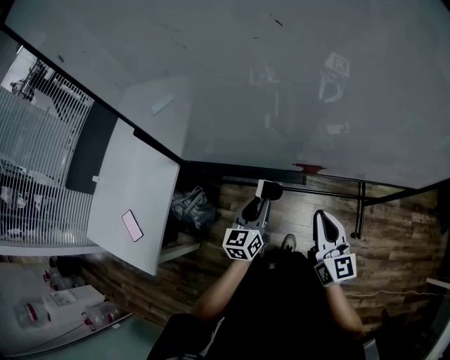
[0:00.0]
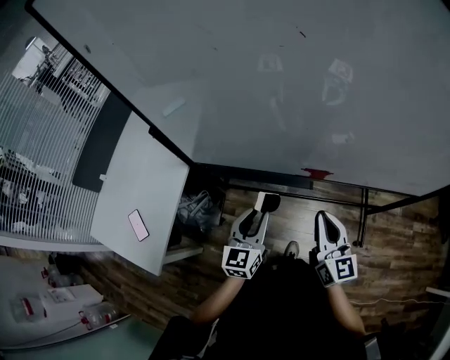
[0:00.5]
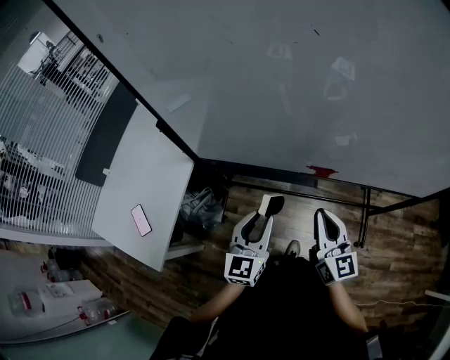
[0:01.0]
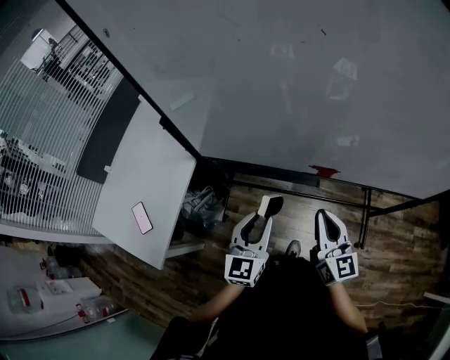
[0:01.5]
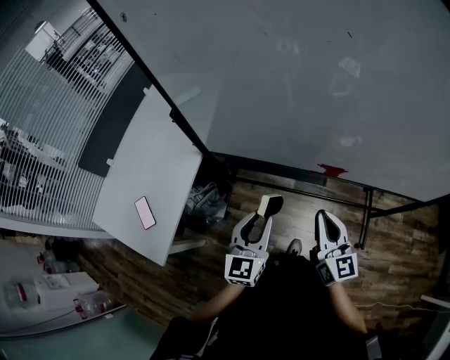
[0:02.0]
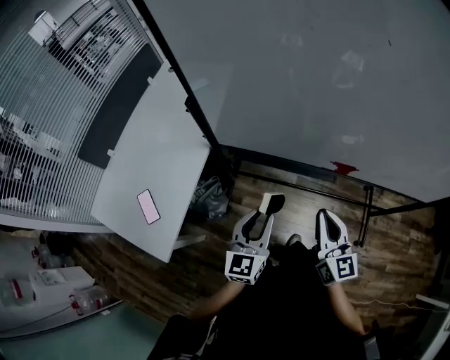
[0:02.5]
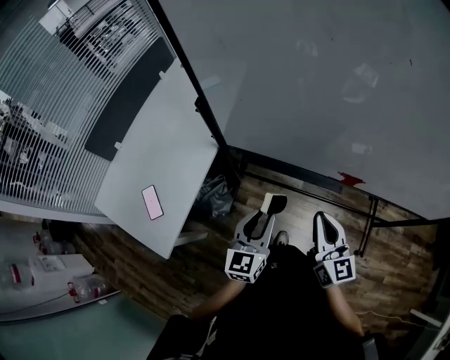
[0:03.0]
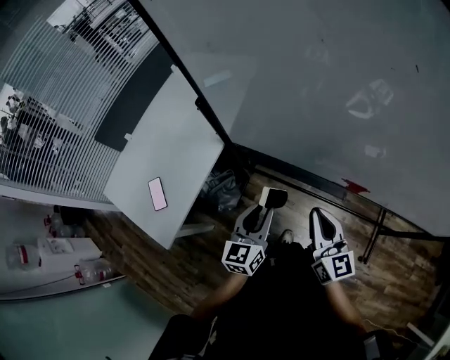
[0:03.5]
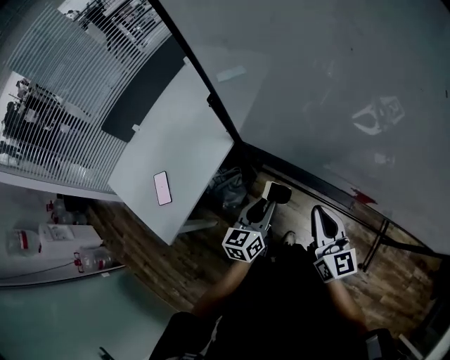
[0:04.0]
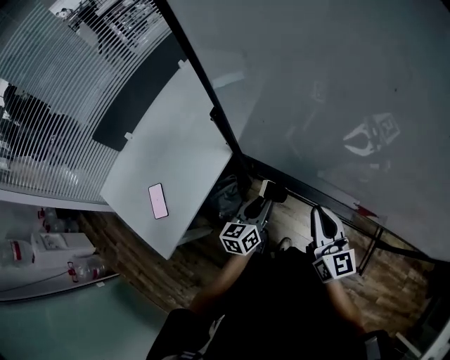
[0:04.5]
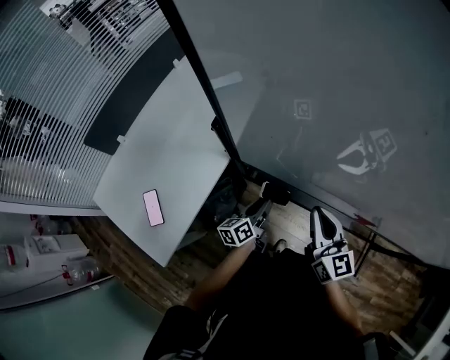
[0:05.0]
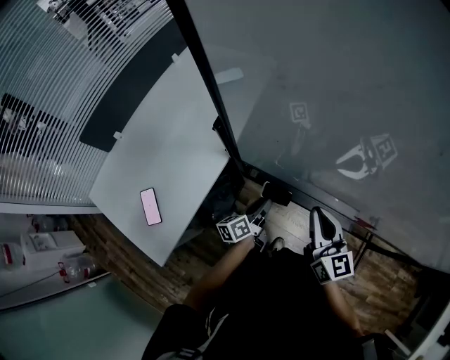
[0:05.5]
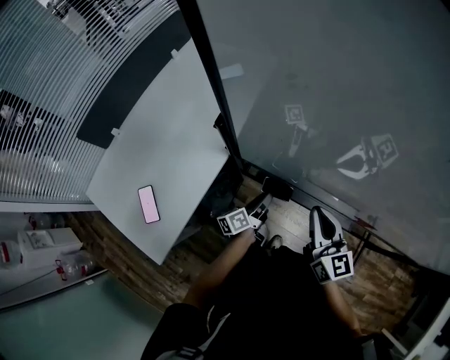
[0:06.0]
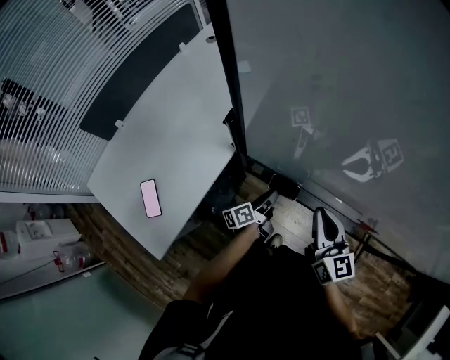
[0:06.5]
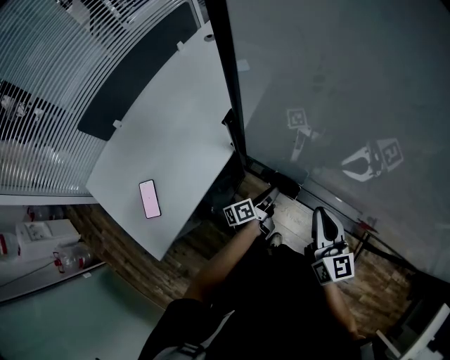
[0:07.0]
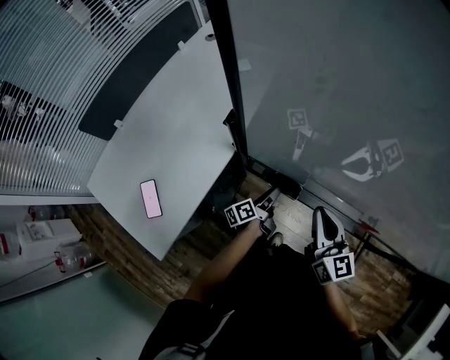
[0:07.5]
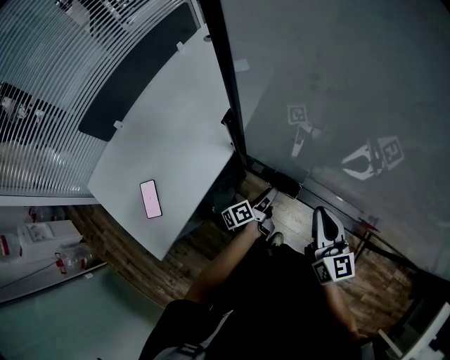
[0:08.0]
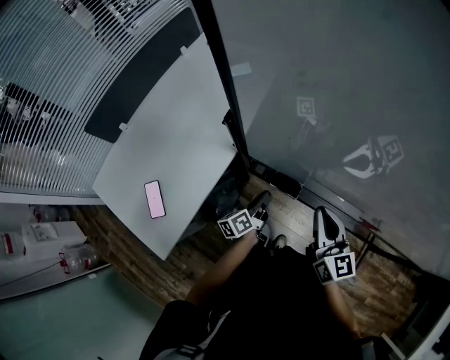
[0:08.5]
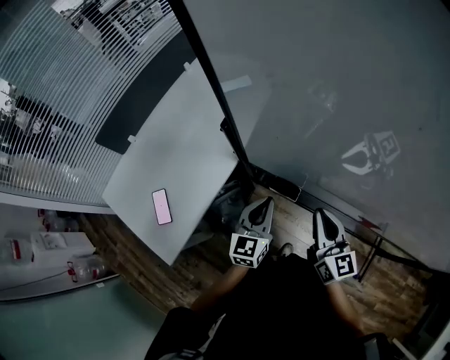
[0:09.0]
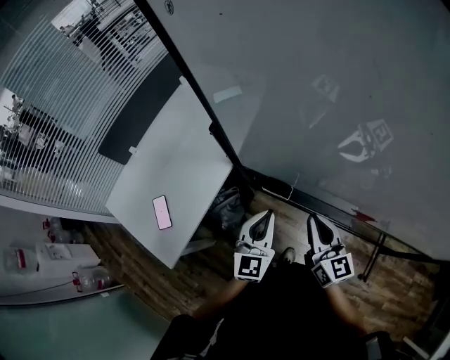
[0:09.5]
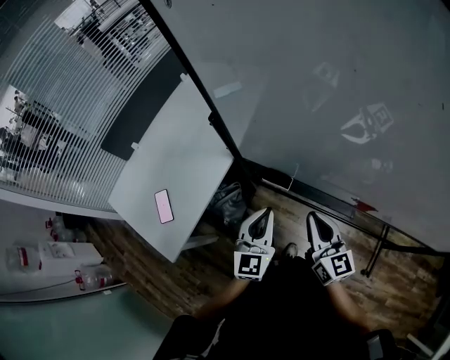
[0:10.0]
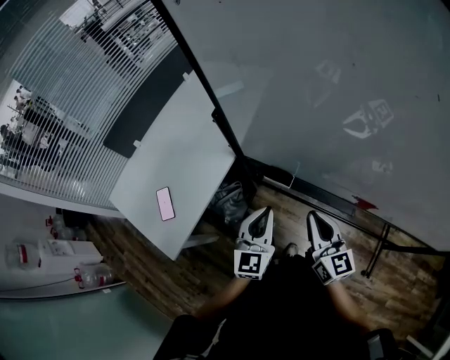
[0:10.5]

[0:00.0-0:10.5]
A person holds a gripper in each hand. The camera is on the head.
0:00.0 to 0:02.0: The right gripper travels to the left by approximately 10 cm, while the left gripper shifts some 15 cm upward, backward and to the left.
0:02.0 to 0:04.0: The left gripper is displaced downward, forward and to the left by some 15 cm, and rotates about 20 degrees. Meanwhile the right gripper shifts about 10 cm forward and to the left.
0:04.0 to 0:06.5: The left gripper is displaced downward and forward by approximately 20 cm, and twists approximately 50 degrees counterclockwise, seen from behind. The right gripper travels forward by some 10 cm.
0:06.5 to 0:08.5: The left gripper closes up.
0:08.5 to 0:10.5: The left gripper heads upward and backward, covering roughly 20 cm, and rotates around the line of its fingers by about 70 degrees, clockwise from behind, while the right gripper moves backward, about 10 cm.

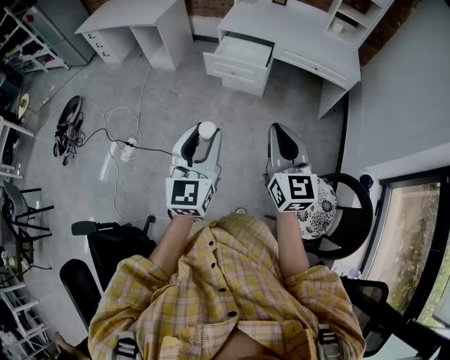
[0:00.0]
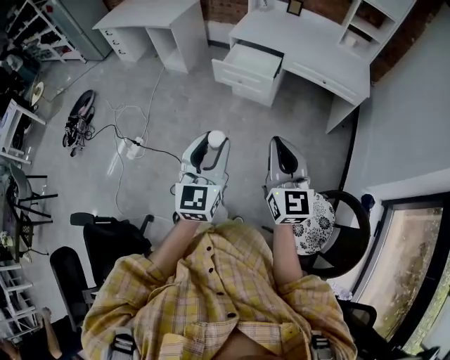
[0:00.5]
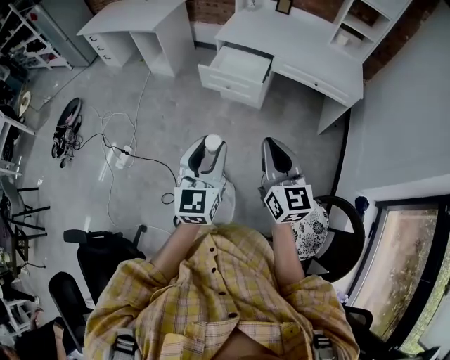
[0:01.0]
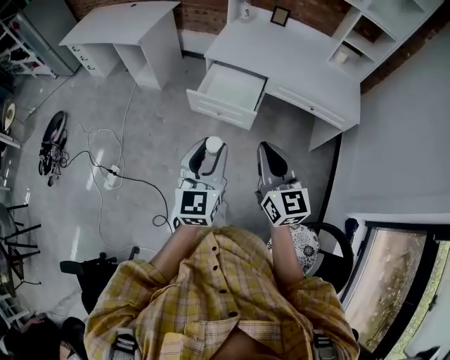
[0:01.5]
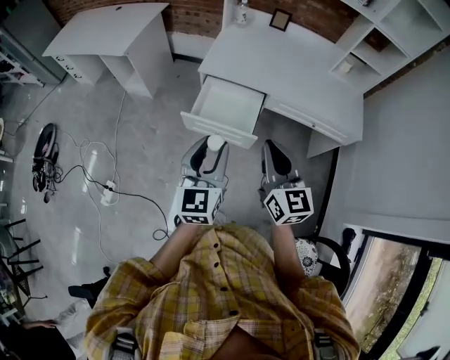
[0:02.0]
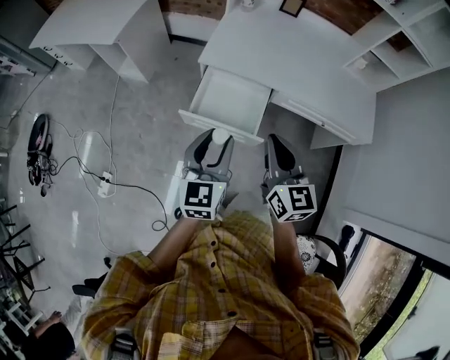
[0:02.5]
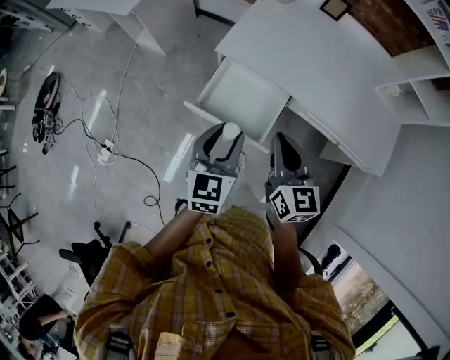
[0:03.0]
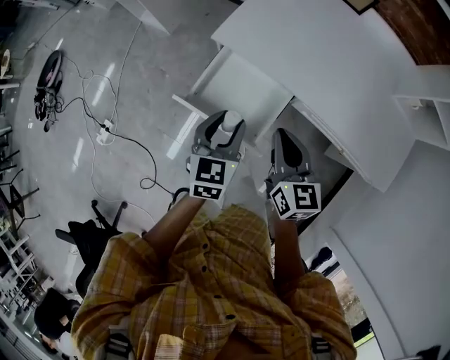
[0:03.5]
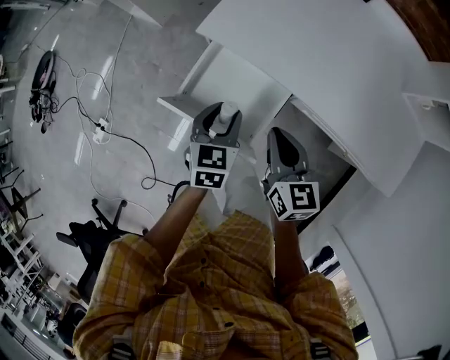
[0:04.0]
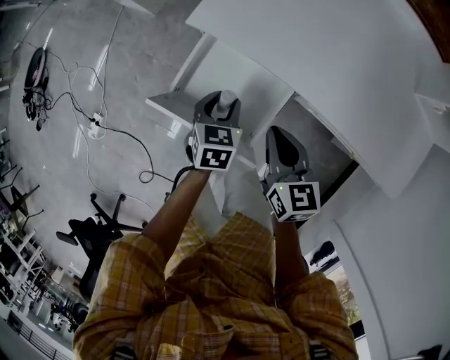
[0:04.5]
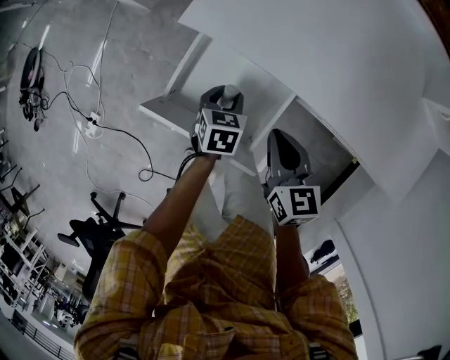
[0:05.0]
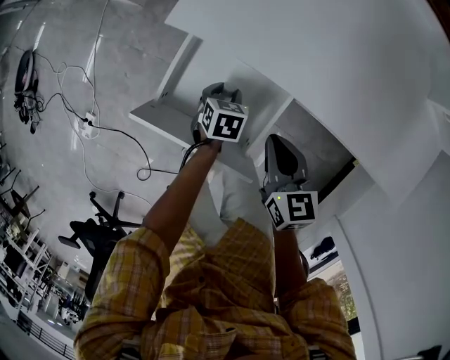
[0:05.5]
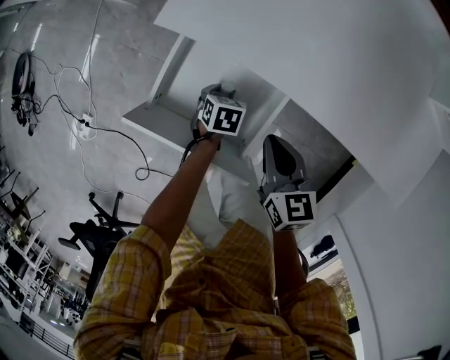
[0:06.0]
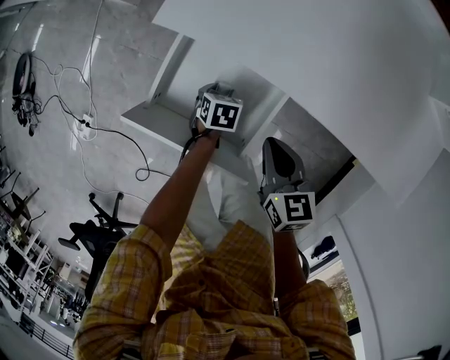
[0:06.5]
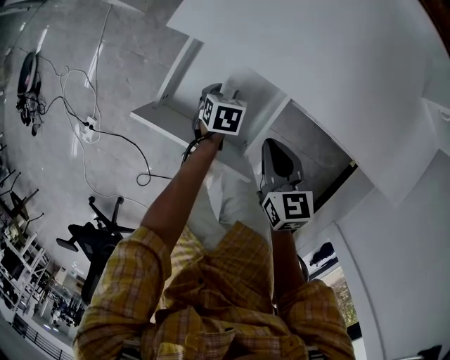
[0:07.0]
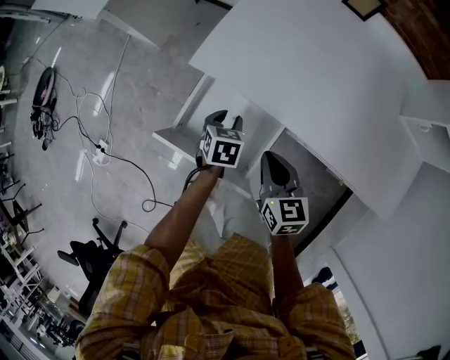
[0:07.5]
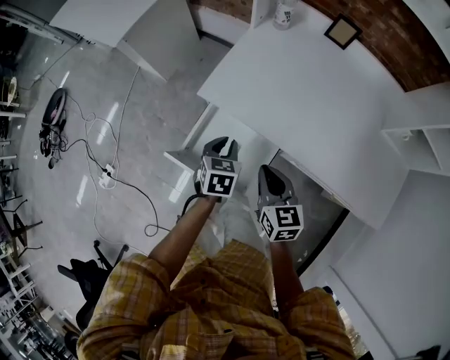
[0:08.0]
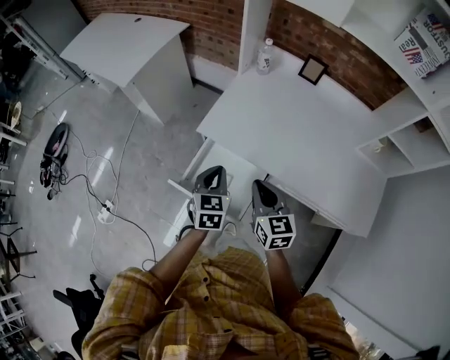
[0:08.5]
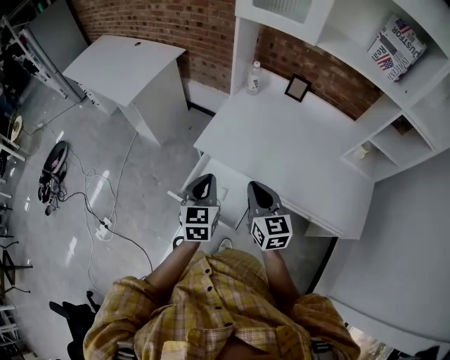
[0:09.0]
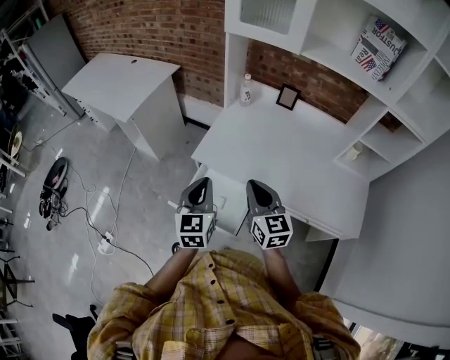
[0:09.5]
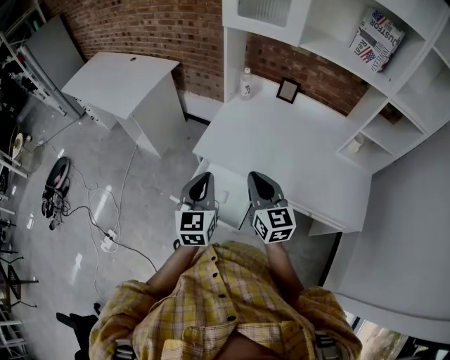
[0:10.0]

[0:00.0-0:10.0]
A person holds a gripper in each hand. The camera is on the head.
0:00.0 to 0:02.0: The pair of grippers is taken forward, some 40 cm.
0:02.0 to 0:04.0: The two grippers go approximately 35 cm forward and downward. The right gripper changes its angle by about 30 degrees; the left gripper tilts its fingers approximately 30 degrees downward.
0:04.0 to 0:06.0: The right gripper travels downward by approximately 15 cm. The left gripper travels downward by some 30 cm, and points its fingers about 30 degrees further downward.
0:06.0 to 0:08.0: The right gripper is displaced upward by roughly 10 cm, while the left gripper moves upward, about 25 cm, swivels some 30 degrees, and closes.
0:08.0 to 0:10.0: Both grippers move upward, roughly 25 cm. The left gripper tips its fingers upward by some 40 degrees; the right gripper turns by roughly 20 degrees.

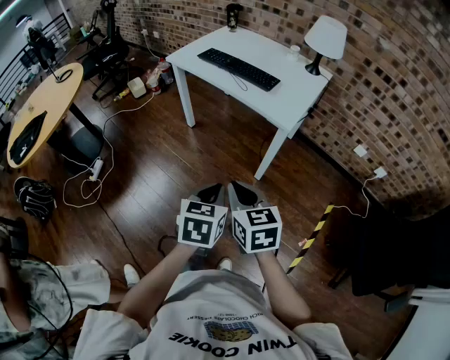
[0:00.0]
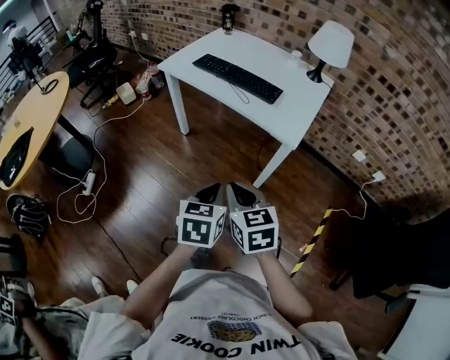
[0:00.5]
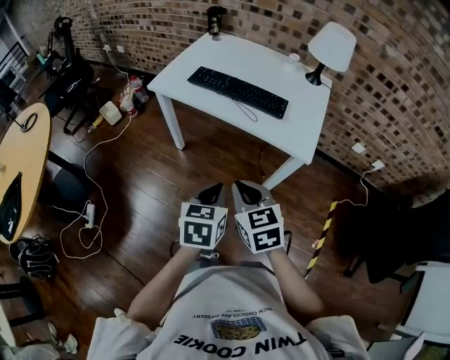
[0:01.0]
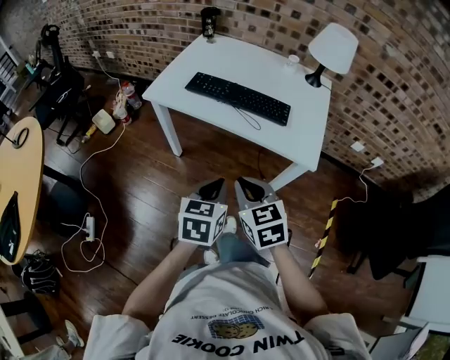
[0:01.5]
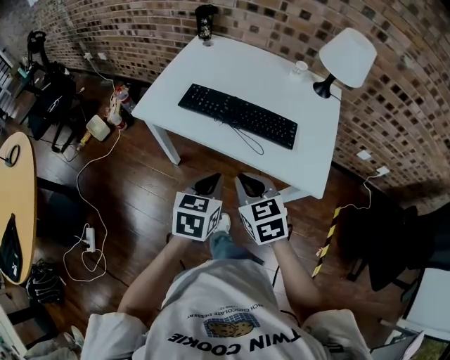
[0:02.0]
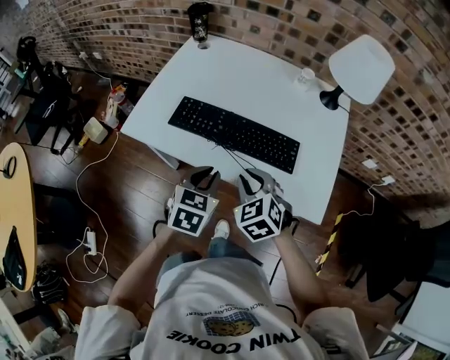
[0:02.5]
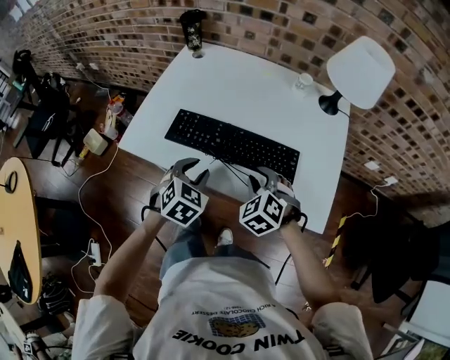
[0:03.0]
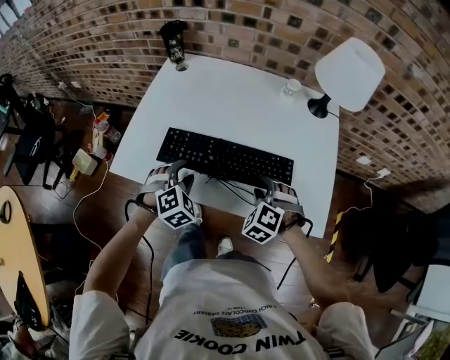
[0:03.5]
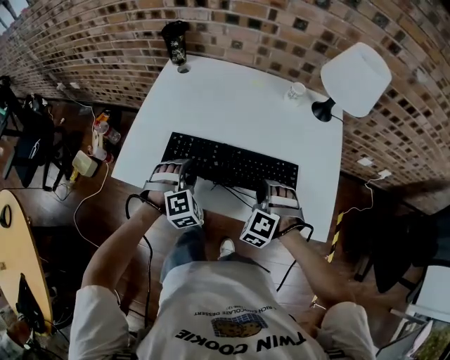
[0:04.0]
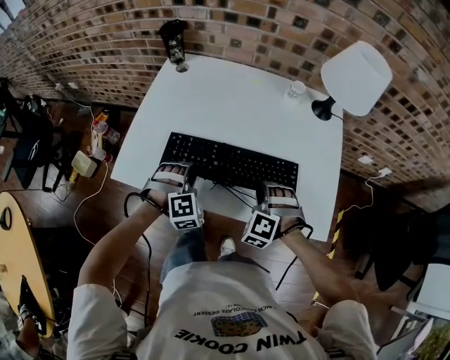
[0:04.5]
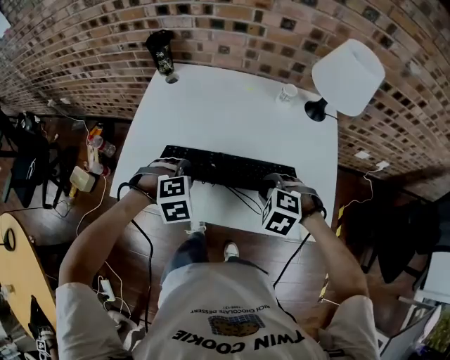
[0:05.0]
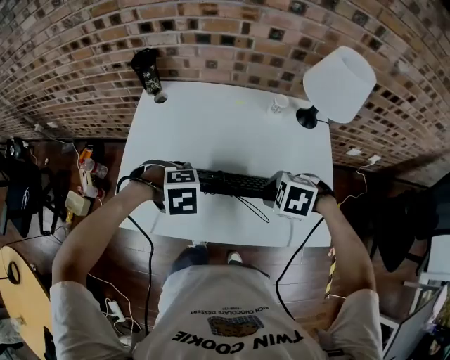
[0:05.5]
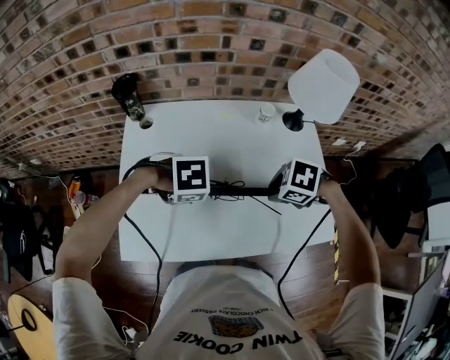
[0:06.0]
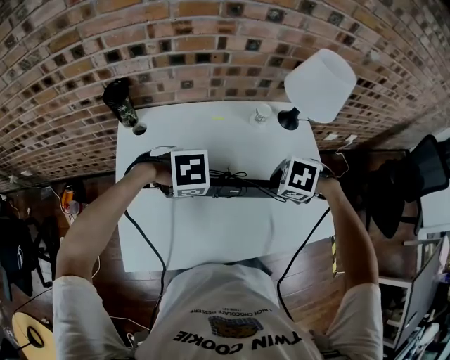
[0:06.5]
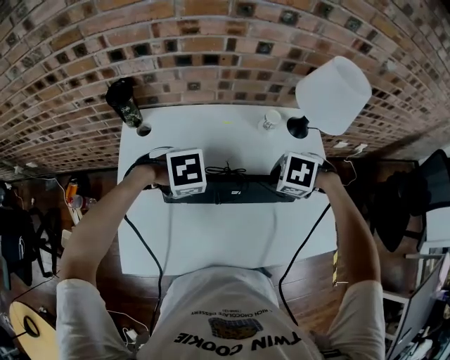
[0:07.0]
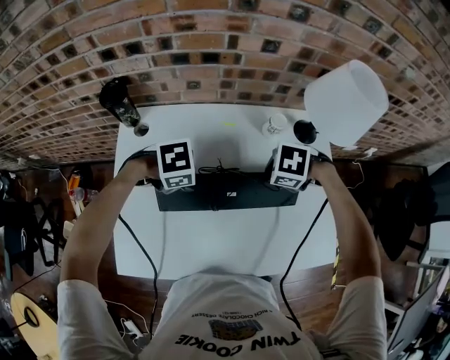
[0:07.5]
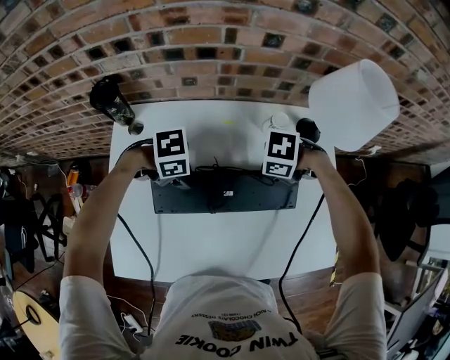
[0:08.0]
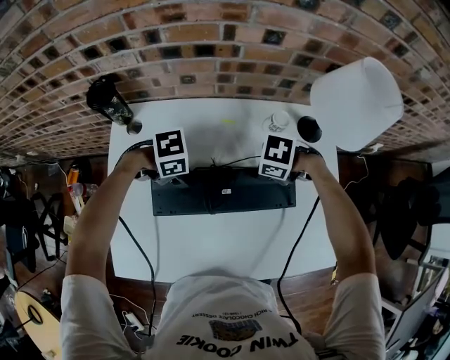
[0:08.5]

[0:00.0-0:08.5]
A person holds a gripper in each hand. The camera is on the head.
0:00.0 to 0:02.0: The two grippers travel together, forward, about 40 cm.
0:02.0 to 0:04.0: The left gripper goes some 25 cm forward, rolls clockwise, seen from behind, by approximately 80 degrees, and opens its fingers. The right gripper travels forward and downward by approximately 25 cm, rolls counterclockwise, seen from behind, by approximately 50 degrees, and opens.
0:04.0 to 0:06.5: The right gripper moves approximately 15 cm, and tilts its fingers some 30 degrees downward, while the left gripper shifts by approximately 15 cm, swivels about 60 degrees, and closes up.
0:06.5 to 0:08.5: The right gripper changes place by approximately 15 cm. The left gripper travels downward by roughly 10 cm, and rotates approximately 30 degrees.
